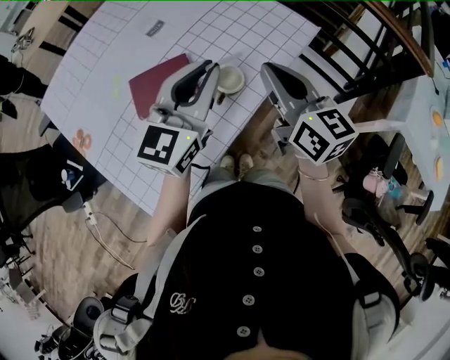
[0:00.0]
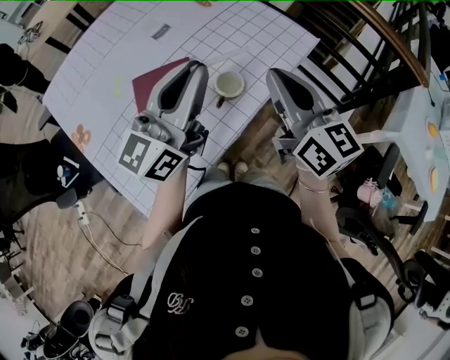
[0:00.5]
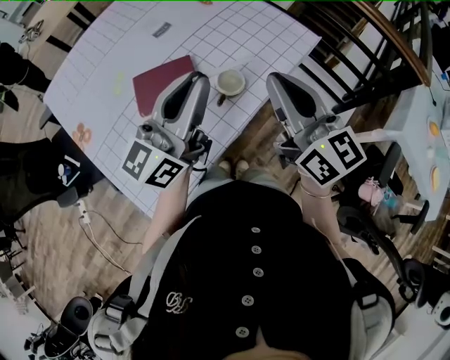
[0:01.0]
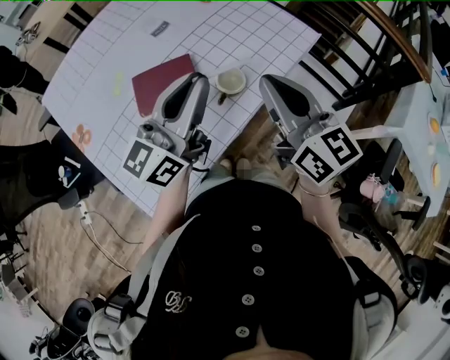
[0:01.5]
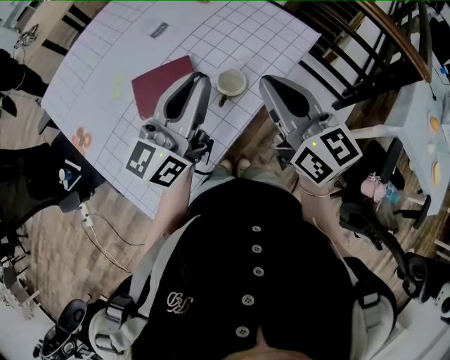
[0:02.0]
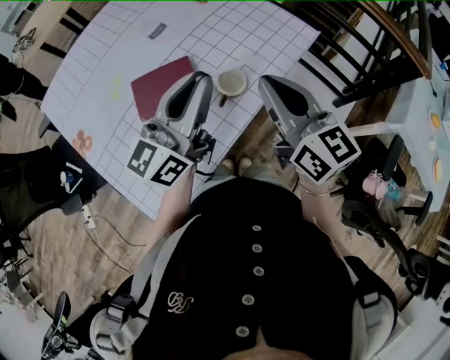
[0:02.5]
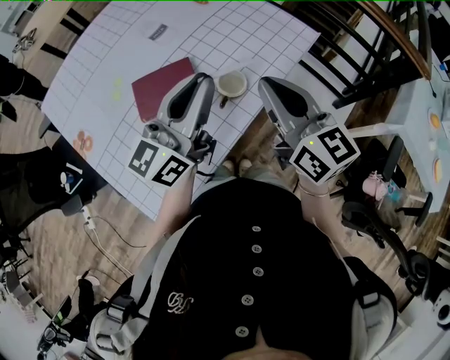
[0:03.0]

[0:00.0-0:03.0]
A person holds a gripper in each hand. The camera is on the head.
0:00.0 to 0:01.5: The left gripper changes place by some 5 cm, and changes its angle by about 20 degrees. The right gripper moves approximately 5 cm.
0:01.5 to 0:03.0: The grippers make only small movements.

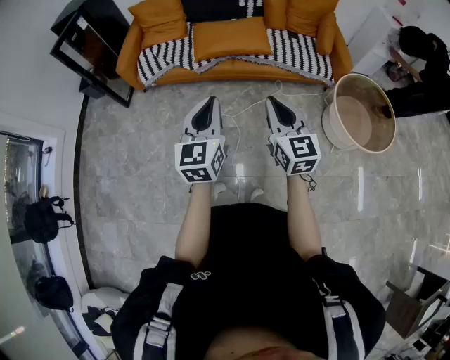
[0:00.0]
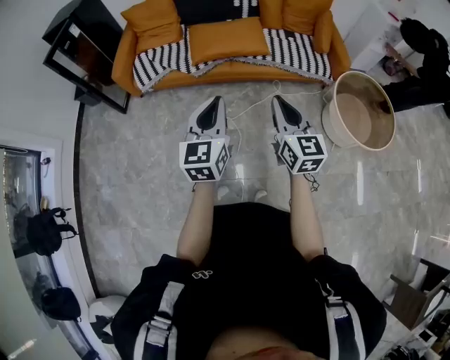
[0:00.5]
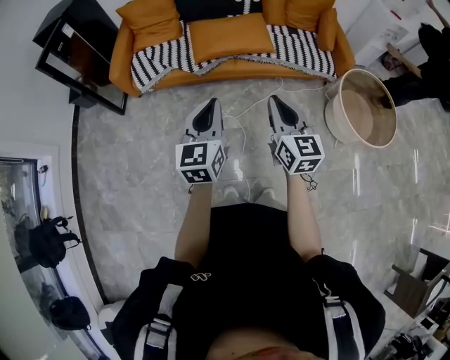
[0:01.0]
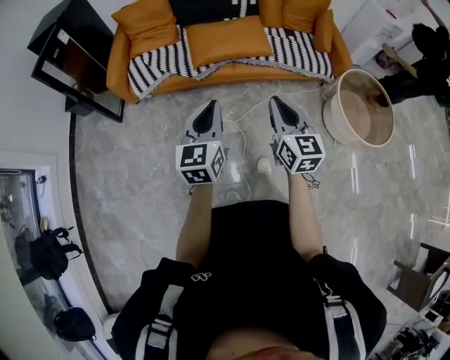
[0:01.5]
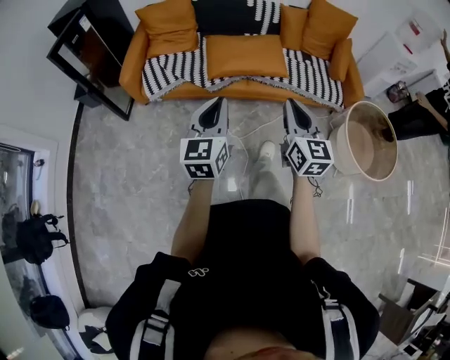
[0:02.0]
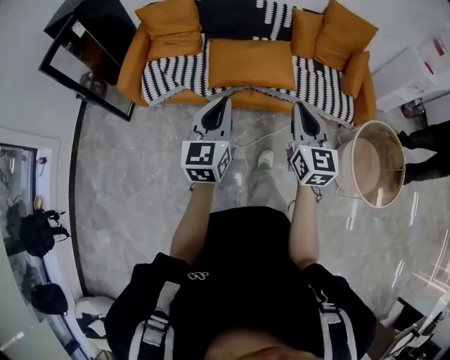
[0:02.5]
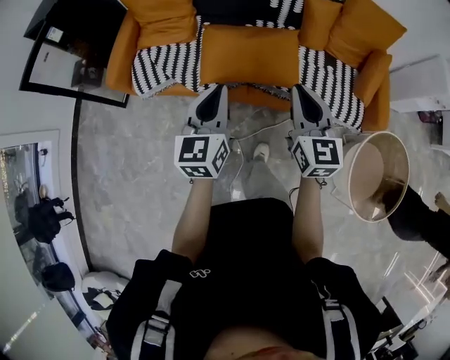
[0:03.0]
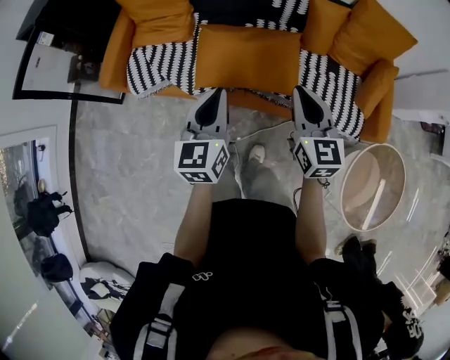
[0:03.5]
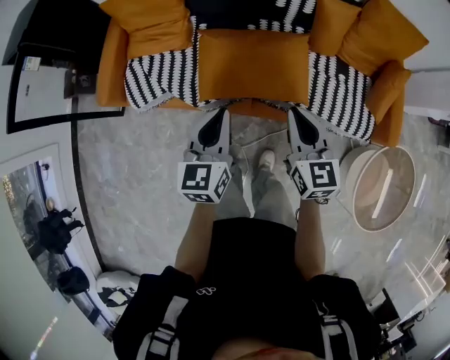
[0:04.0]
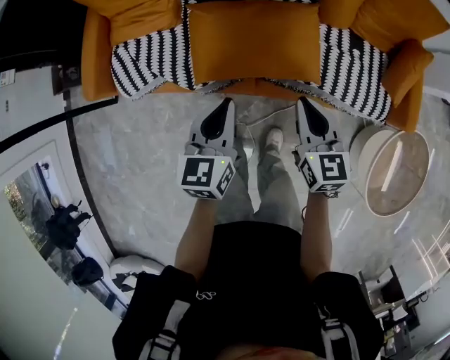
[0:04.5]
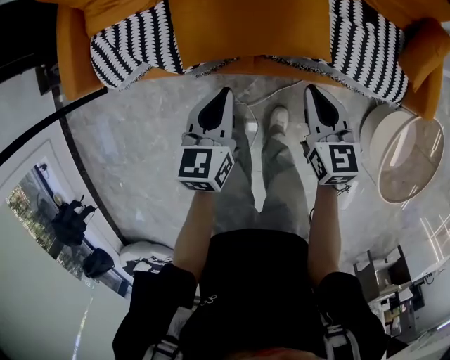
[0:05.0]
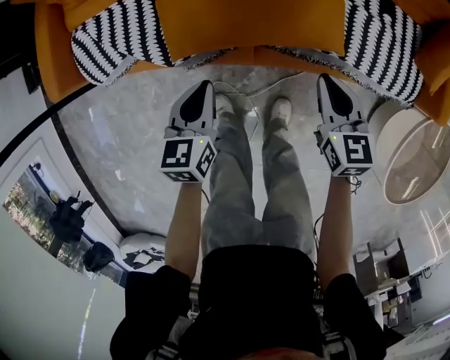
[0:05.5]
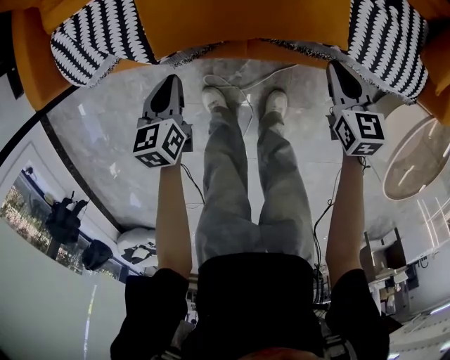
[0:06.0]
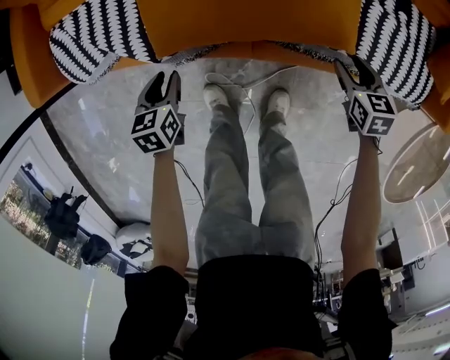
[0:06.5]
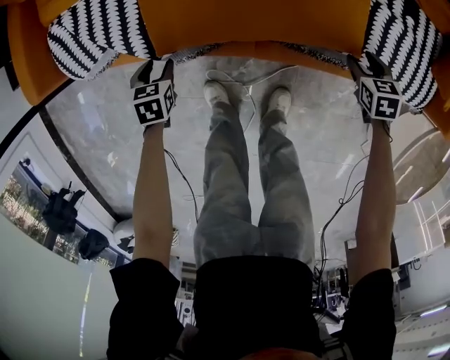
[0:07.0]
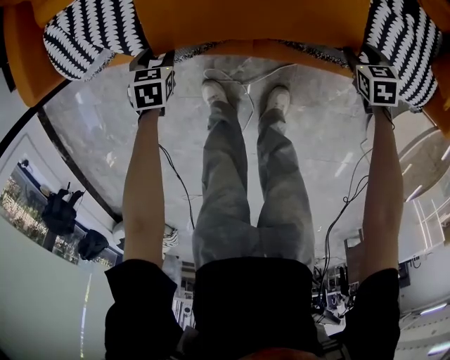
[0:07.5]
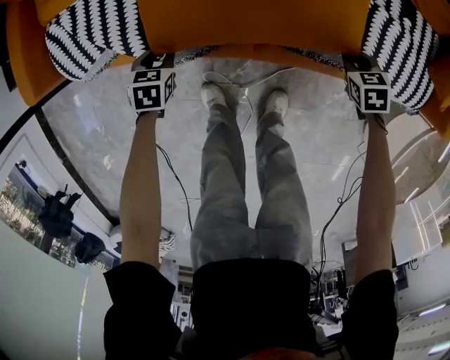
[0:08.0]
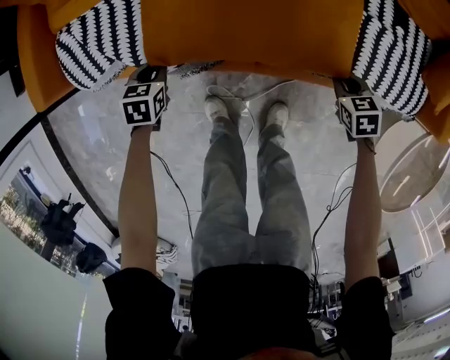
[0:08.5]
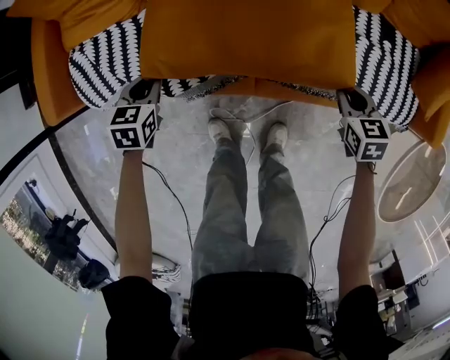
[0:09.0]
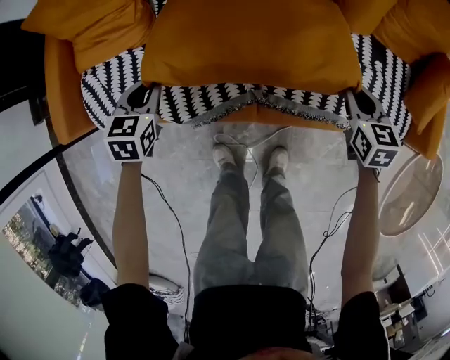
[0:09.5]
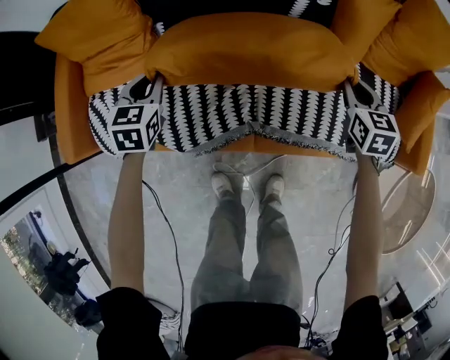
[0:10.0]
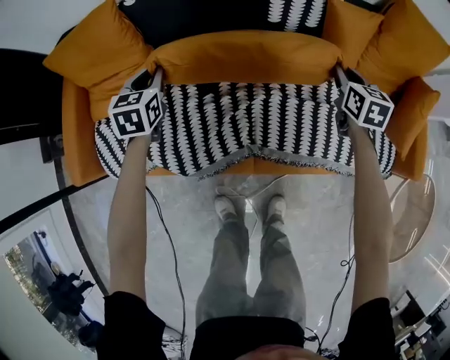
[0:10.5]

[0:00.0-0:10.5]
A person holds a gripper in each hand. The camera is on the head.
0:00.0 to 0:02.0: The grippers both shift forward and to the left by about 20 cm.
0:02.0 to 0:04.0: Both grippers are carried forward, about 40 cm.
0:04.0 to 0:06.5: Both grippers travel together downward, roughly 40 cm. The right gripper tilts its fingers about 30 degrees downward, and opens up; the left gripper tips its fingers downward by some 40 degrees, and opens its fingers.
0:06.5 to 0:08.5: The left gripper travels forward by about 5 cm. Meanwhile the right gripper closes its fingers.
0:08.5 to 0:10.5: Both grippers move forward and upward, roughly 35 cm. The right gripper turns by approximately 40 degrees, while the left gripper swivels roughly 30 degrees.

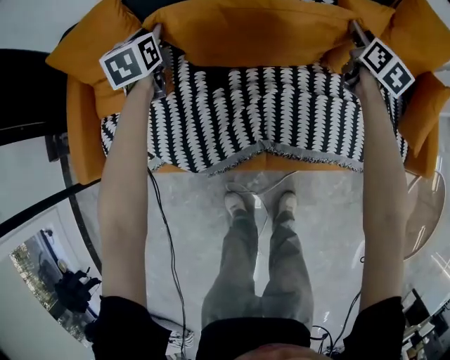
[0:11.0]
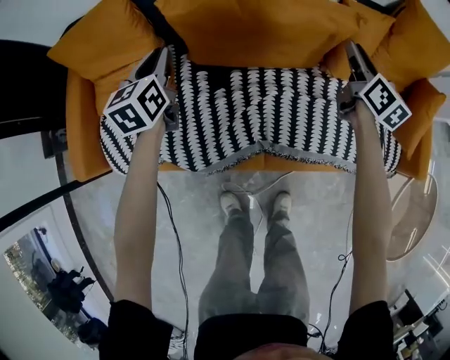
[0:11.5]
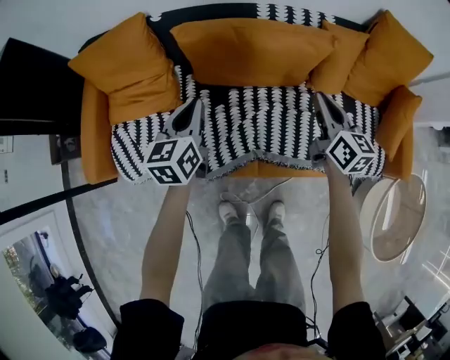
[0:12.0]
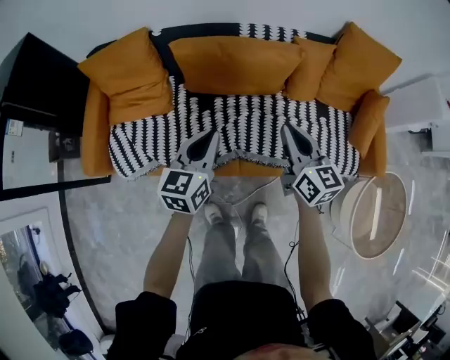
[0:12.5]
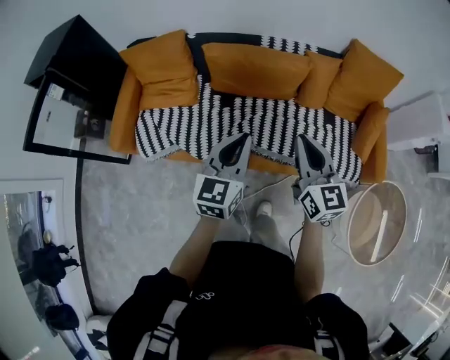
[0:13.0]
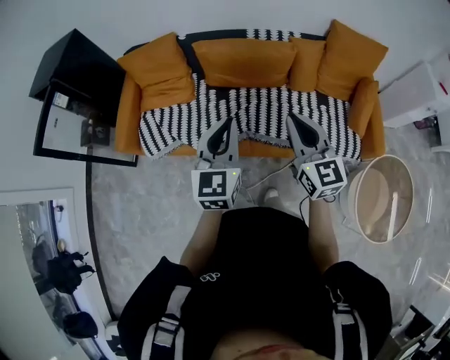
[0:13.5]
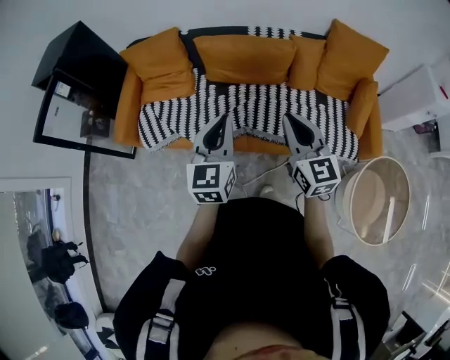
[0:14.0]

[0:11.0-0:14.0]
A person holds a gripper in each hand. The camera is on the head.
0:11.0 to 0:12.5: The right gripper moves backward, upward and to the left, approximately 40 cm, swivels some 30 degrees, and closes up; the left gripper is displaced backward, upward and to the right by approximately 40 cm, changes its angle by approximately 30 degrees, and closes.
0:12.5 to 0:14.0: The left gripper is displaced upward and backward by roughly 25 cm, and rotates about 20 degrees. The right gripper shifts roughly 25 cm backward and upward.

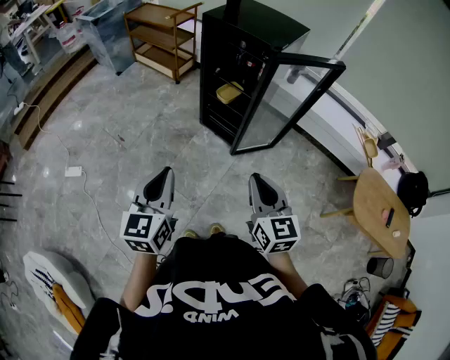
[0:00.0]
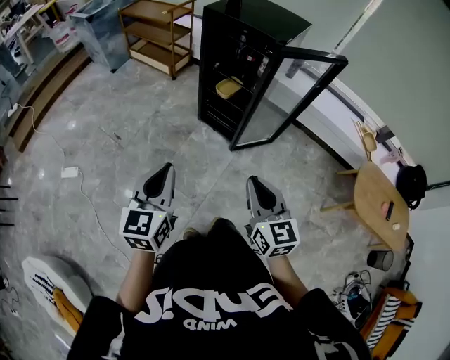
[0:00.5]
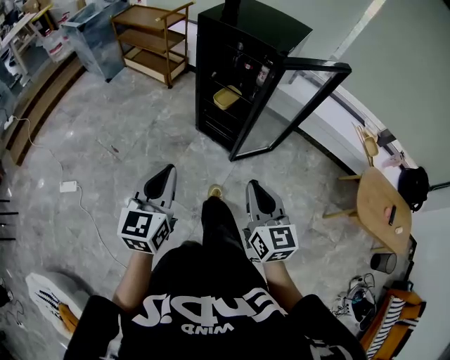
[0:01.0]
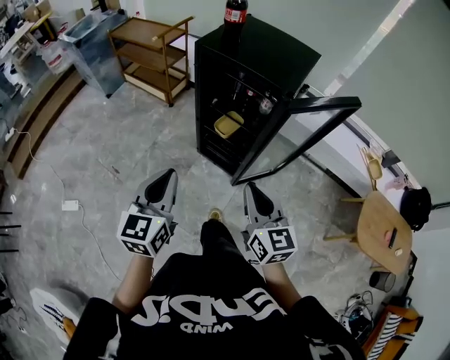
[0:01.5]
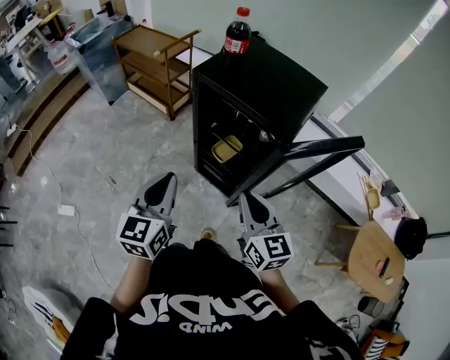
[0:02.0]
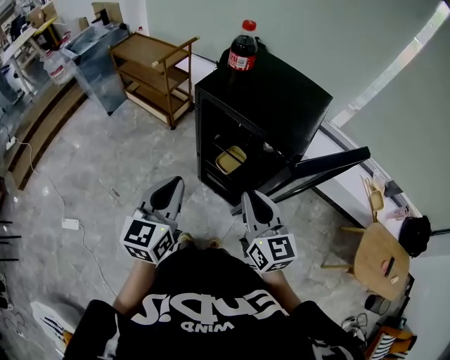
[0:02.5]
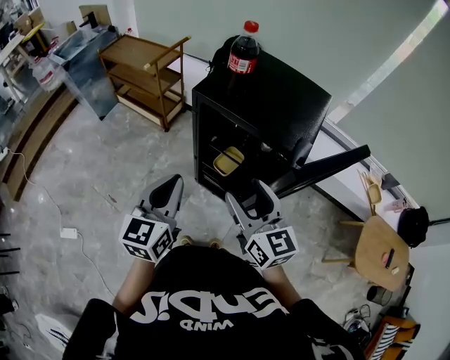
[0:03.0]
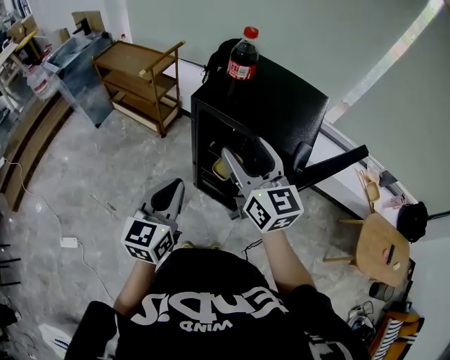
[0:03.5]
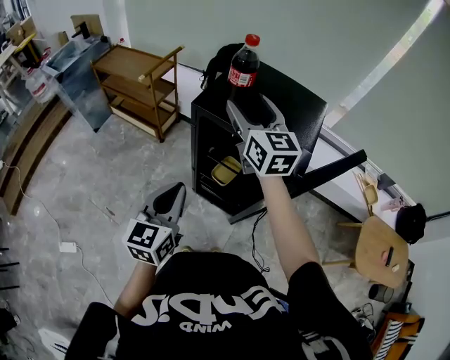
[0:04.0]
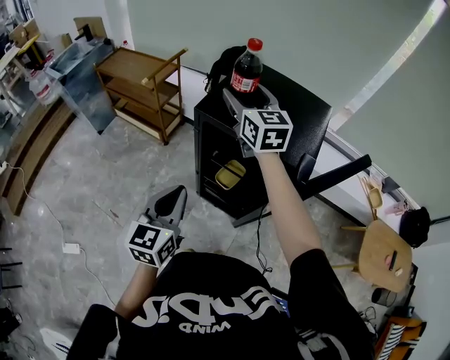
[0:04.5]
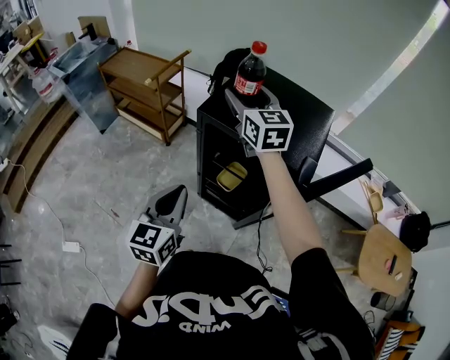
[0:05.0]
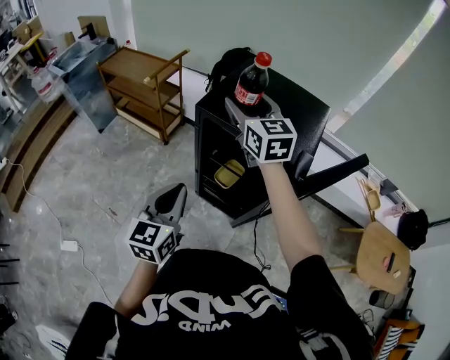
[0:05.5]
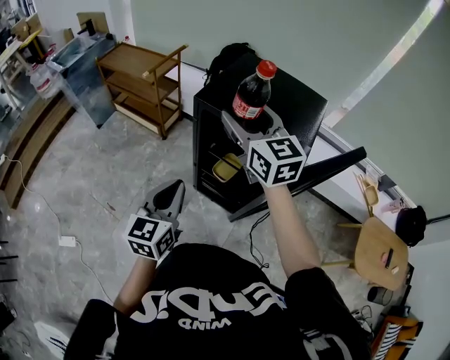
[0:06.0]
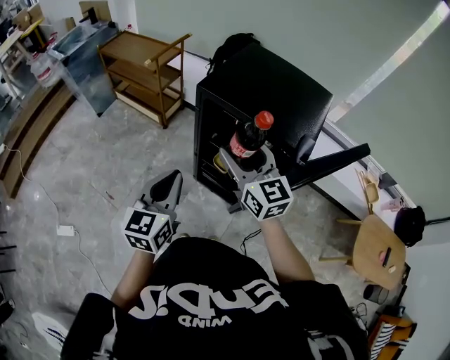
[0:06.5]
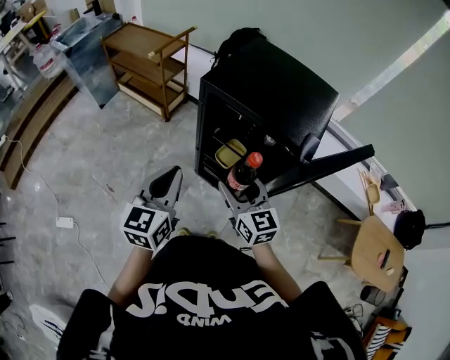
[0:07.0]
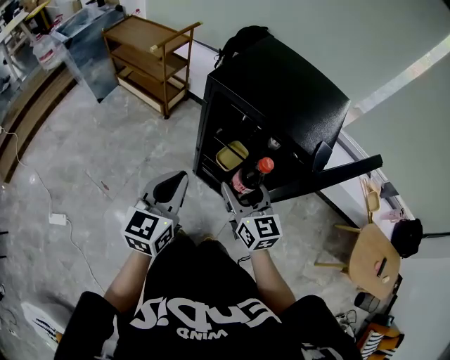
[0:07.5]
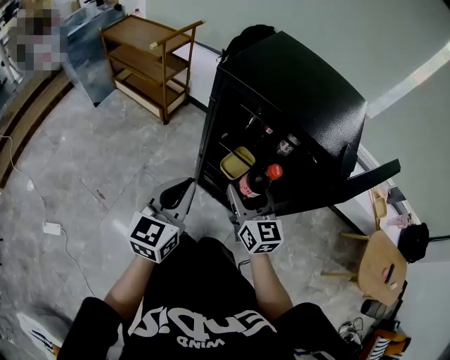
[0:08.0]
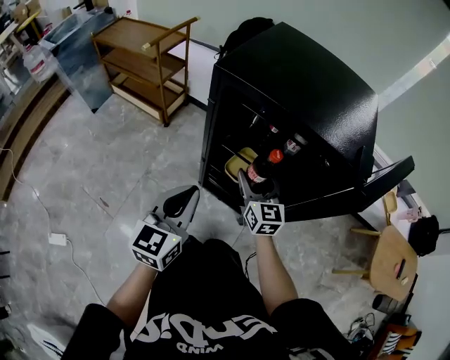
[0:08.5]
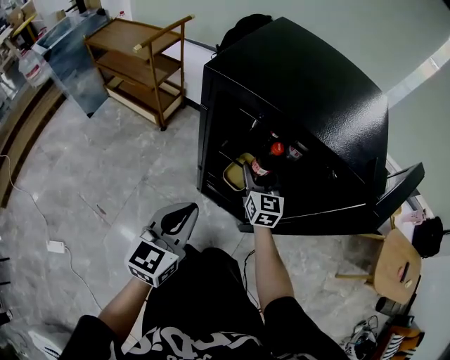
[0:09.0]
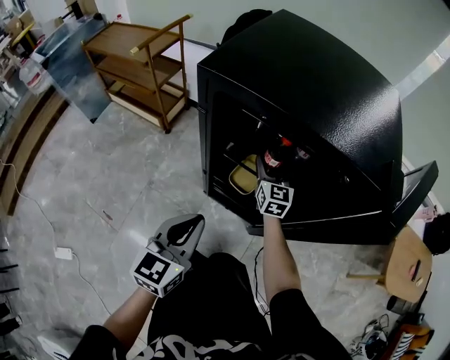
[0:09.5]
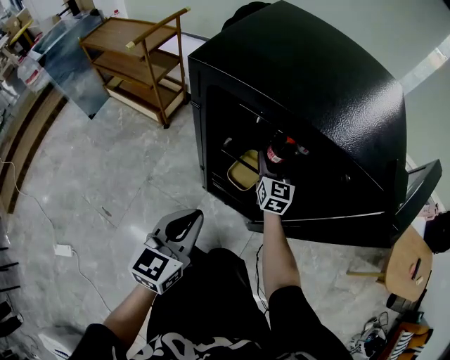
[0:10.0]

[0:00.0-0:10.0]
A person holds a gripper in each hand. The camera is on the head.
0:00.0 to 0:02.0: Both grippers travel together forward, approximately 30 cm.
0:02.0 to 0:04.0: The right gripper is displaced forward and upward by roughly 30 cm, and opens up. Meanwhile the left gripper shifts roughly 10 cm forward.
0:04.0 to 0:06.0: The right gripper heads backward, covering about 5 cm.
0:06.0 to 0:08.0: The left gripper moves downward, some 10 cm. Meanwhile the right gripper shifts some 30 cm downward.
0:08.0 to 0:10.0: The right gripper is displaced forward and downward by roughly 30 cm, and swivels some 20 degrees; the left gripper travels downward by some 10 cm.
